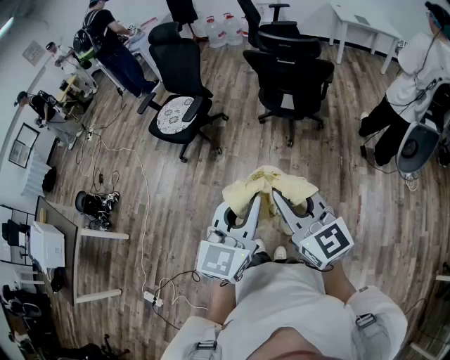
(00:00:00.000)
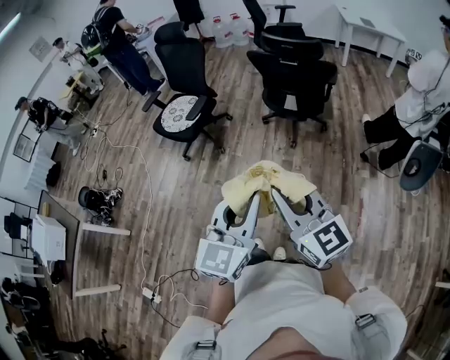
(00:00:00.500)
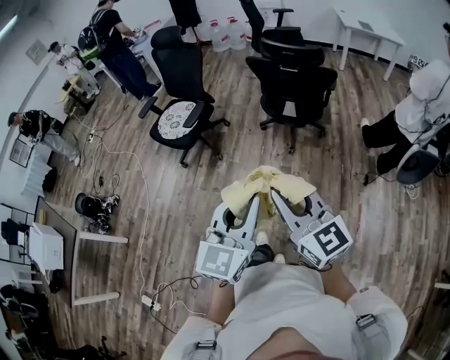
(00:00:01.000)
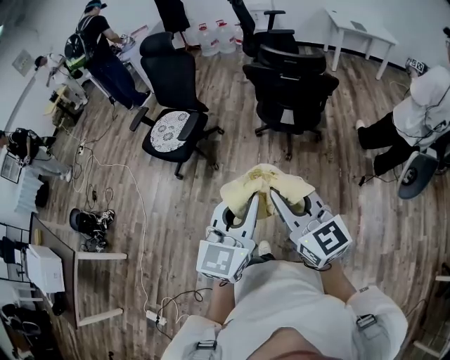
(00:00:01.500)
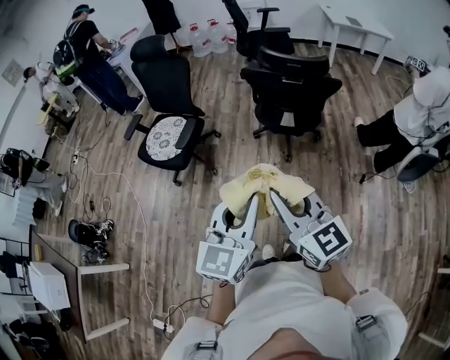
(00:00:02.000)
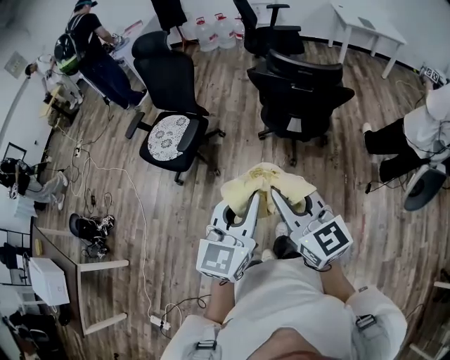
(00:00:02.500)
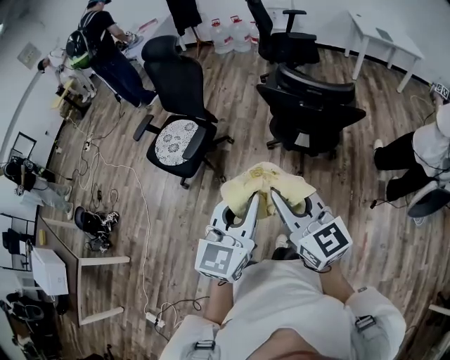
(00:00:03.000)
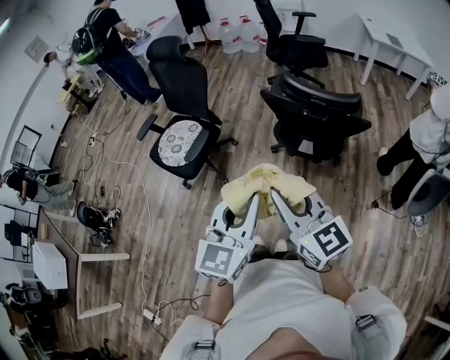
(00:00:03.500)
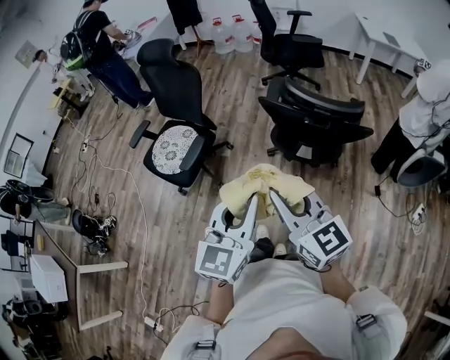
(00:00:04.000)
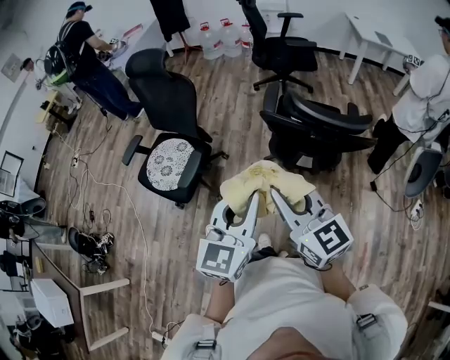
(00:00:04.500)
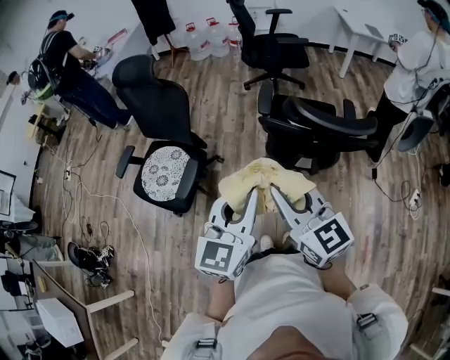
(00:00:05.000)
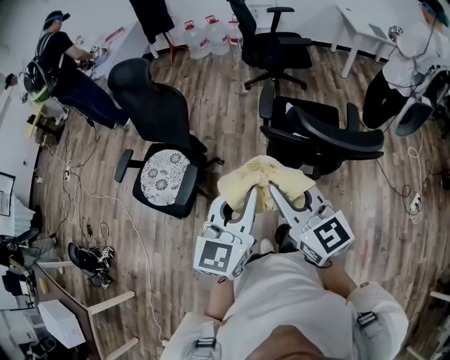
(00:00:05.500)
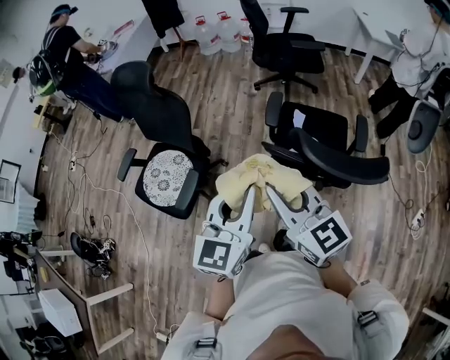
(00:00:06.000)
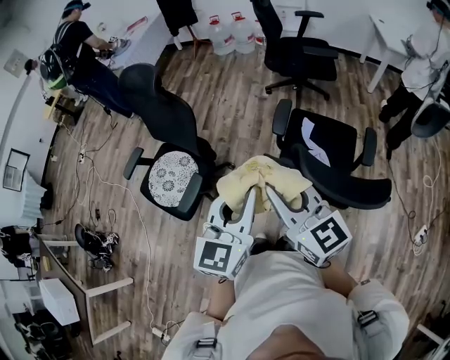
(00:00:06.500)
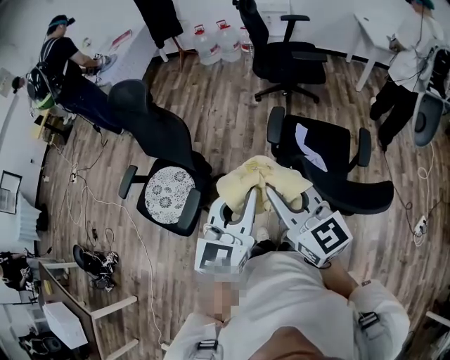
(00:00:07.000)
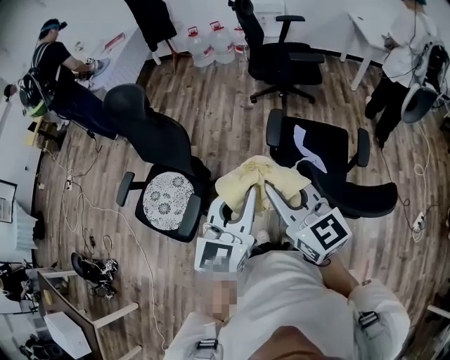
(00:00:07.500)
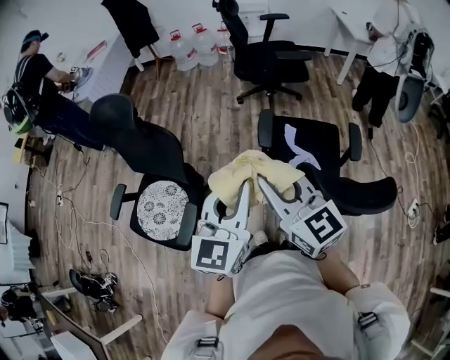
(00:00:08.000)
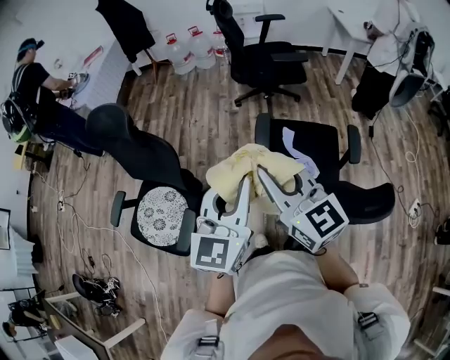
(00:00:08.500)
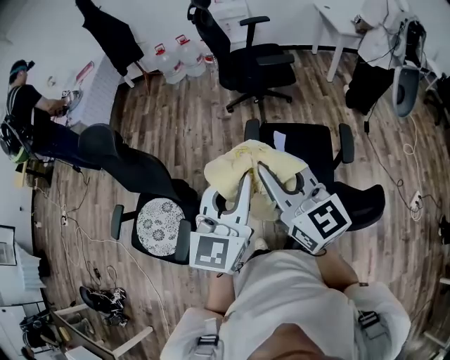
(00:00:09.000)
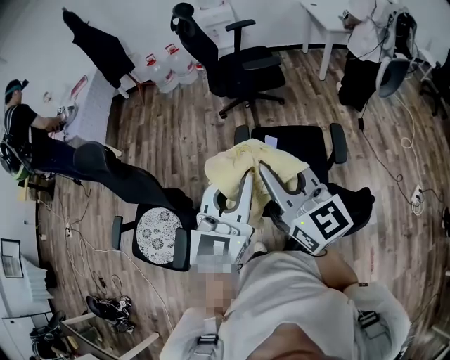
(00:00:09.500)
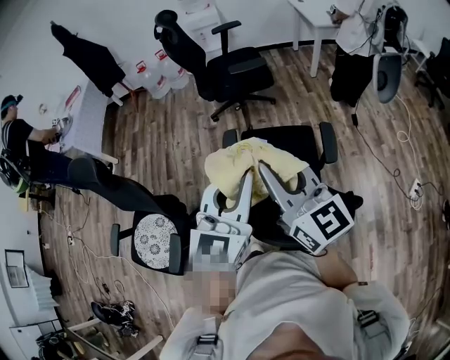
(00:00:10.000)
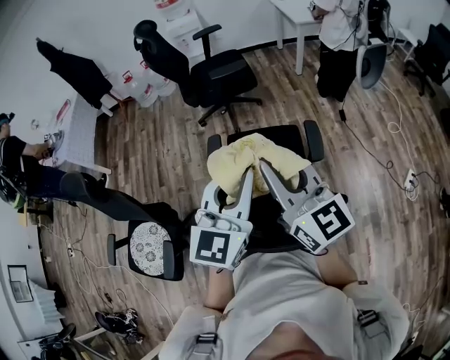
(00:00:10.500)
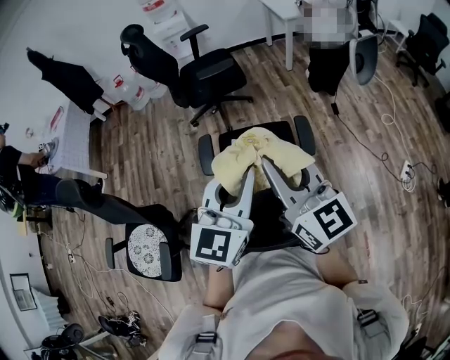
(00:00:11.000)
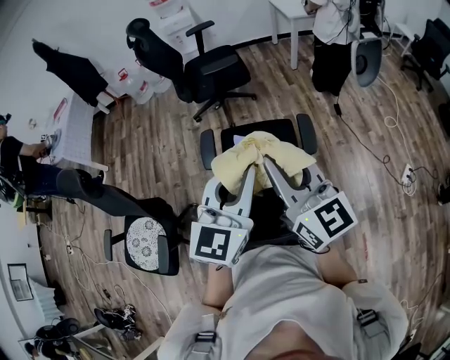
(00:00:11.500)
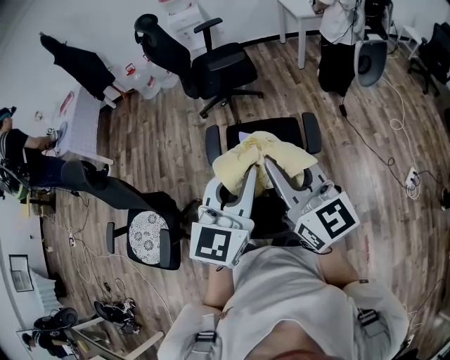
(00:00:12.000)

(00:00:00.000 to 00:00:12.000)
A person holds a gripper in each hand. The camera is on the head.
00:00:00.000 - 00:00:02.000: Both grippers travel together forward, roughly 20 cm.
00:00:02.000 - 00:00:04.000: Both grippers move forward, approximately 25 cm.
00:00:04.000 - 00:00:06.000: The grippers both shift forward by some 25 cm.
00:00:06.000 - 00:00:08.000: Both grippers move forward, some 15 cm.
00:00:08.000 - 00:00:10.000: The grippers both shift to the right by about 25 cm.
00:00:10.000 - 00:00:12.000: The grippers both shift to the right by roughly 10 cm.

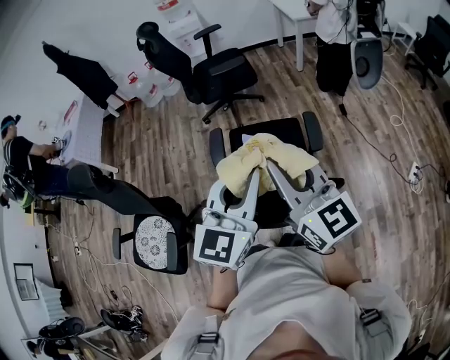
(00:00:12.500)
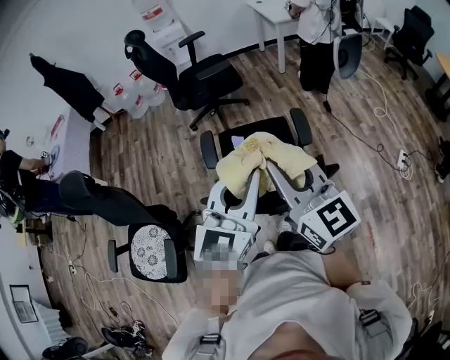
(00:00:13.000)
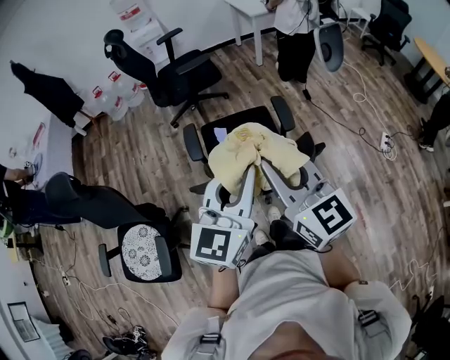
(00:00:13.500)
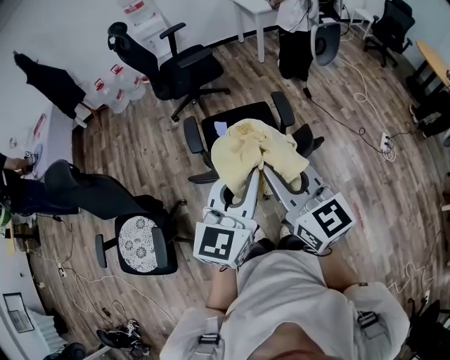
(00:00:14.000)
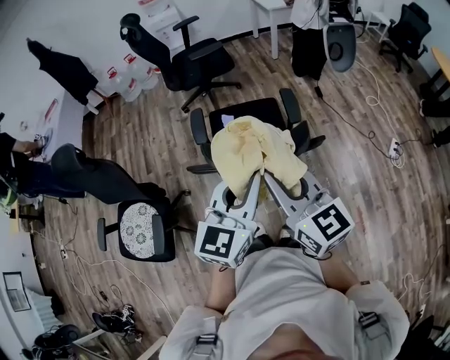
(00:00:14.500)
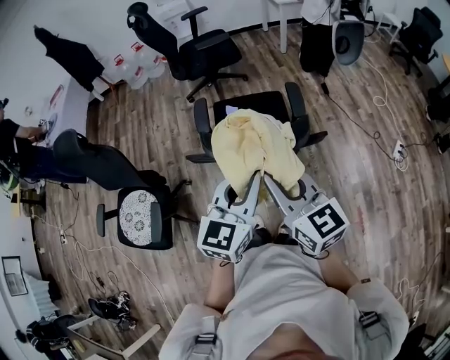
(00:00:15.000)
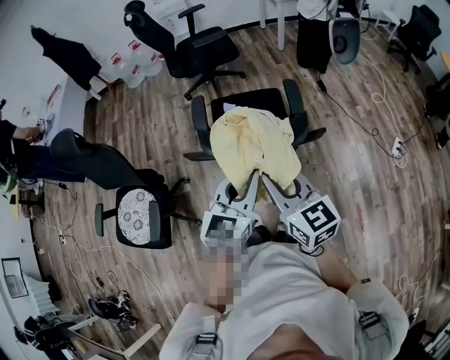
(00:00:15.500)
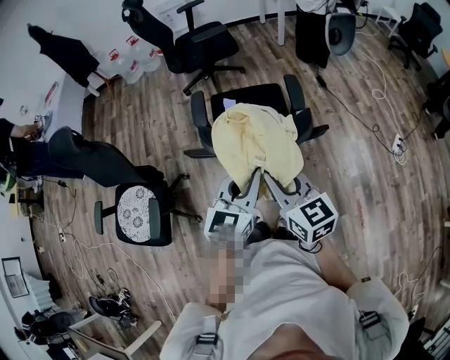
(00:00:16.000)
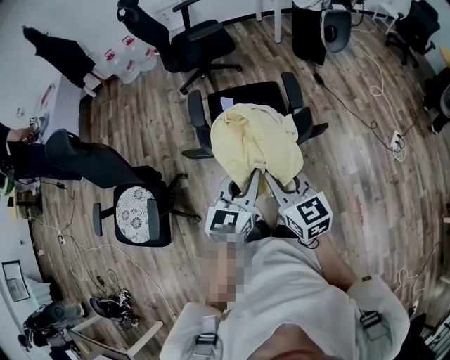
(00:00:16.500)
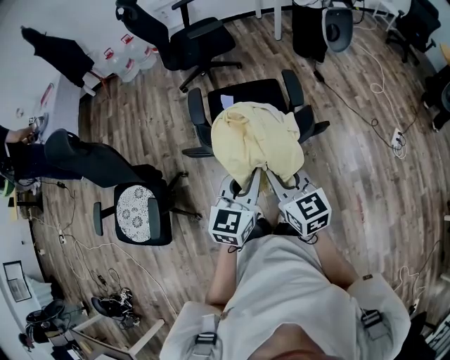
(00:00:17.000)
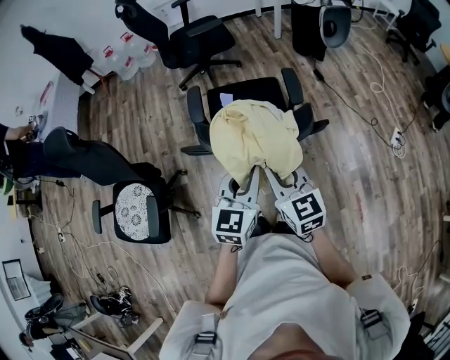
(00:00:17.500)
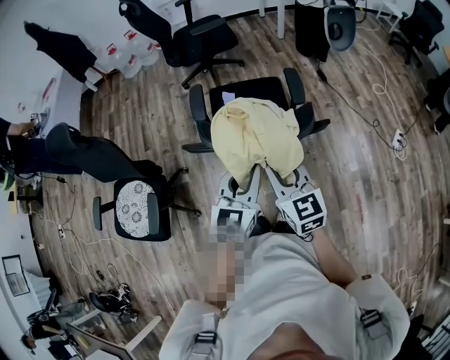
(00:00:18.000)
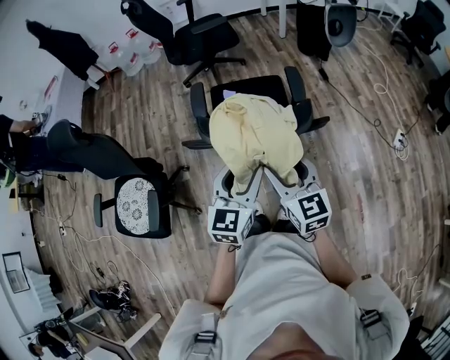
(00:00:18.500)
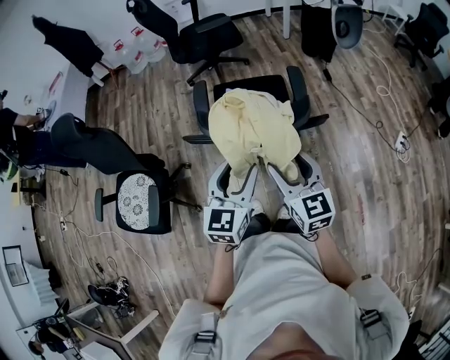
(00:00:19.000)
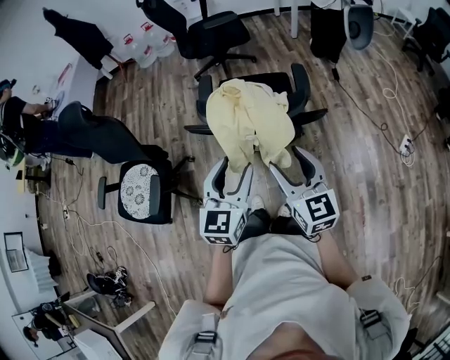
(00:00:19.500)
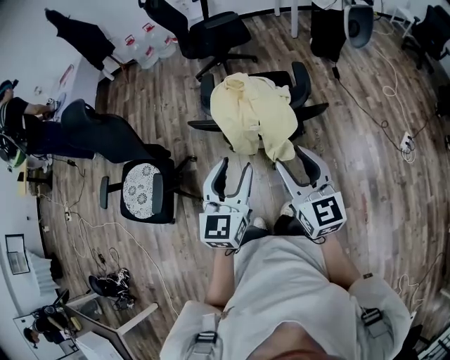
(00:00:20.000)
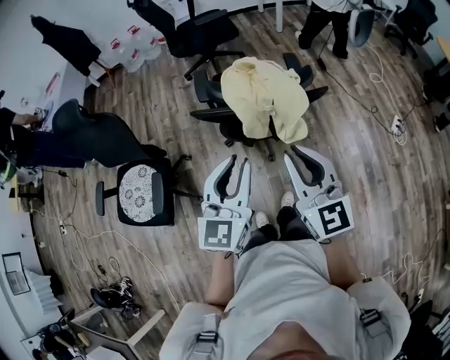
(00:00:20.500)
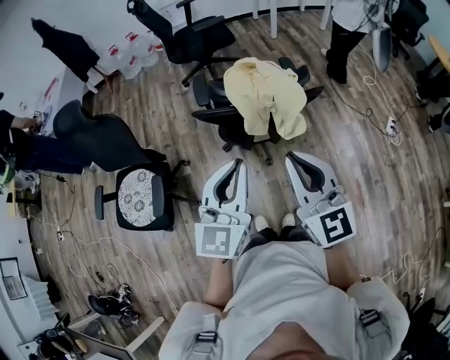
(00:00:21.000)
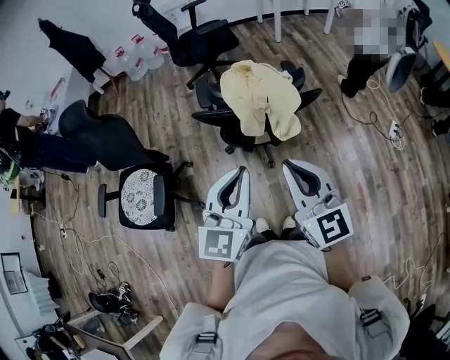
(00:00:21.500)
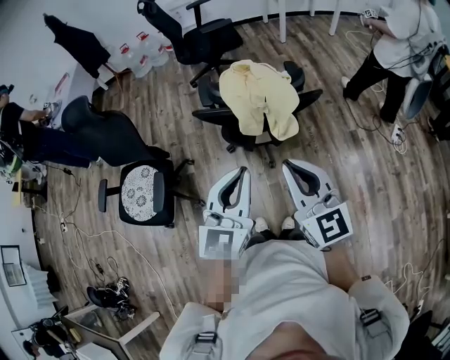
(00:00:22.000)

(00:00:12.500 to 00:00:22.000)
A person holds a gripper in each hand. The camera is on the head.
00:00:12.500 - 00:00:14.500: The two grippers go approximately 15 cm backward.
00:00:14.500 - 00:00:16.500: Both grippers move downward, about 10 cm.
00:00:16.500 - 00:00:18.000: The grippers move only a little.
00:00:18.000 - 00:00:20.000: The right gripper is displaced backward and upward by roughly 10 cm, and opens its fingers. The left gripper heads backward, covering about 10 cm, and opens up.
00:00:20.000 - 00:00:22.000: Both grippers move backward and upward, about 10 cm. The left gripper closes. Meanwhile the right gripper closes its fingers.

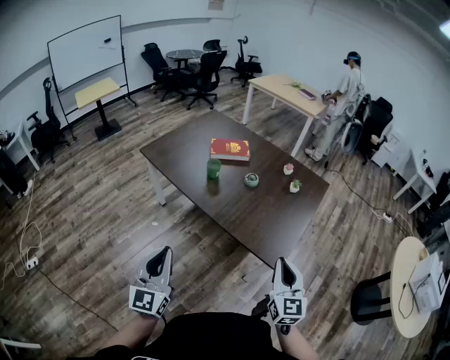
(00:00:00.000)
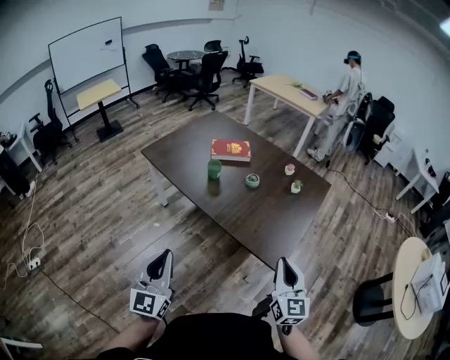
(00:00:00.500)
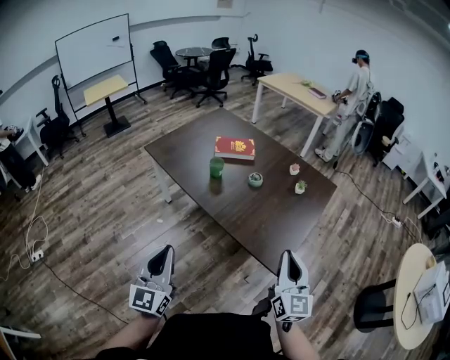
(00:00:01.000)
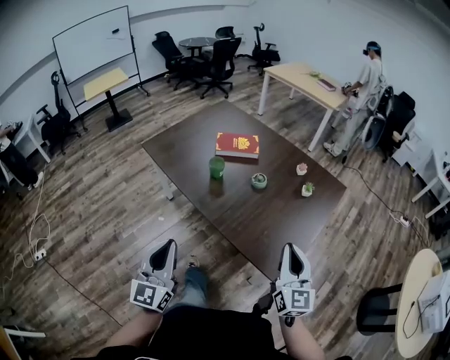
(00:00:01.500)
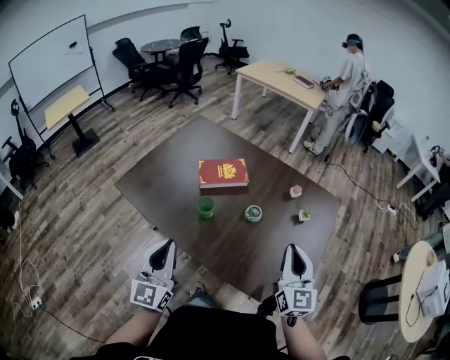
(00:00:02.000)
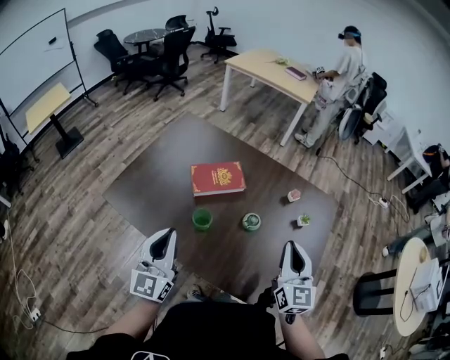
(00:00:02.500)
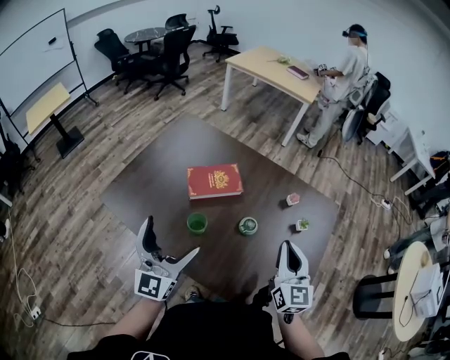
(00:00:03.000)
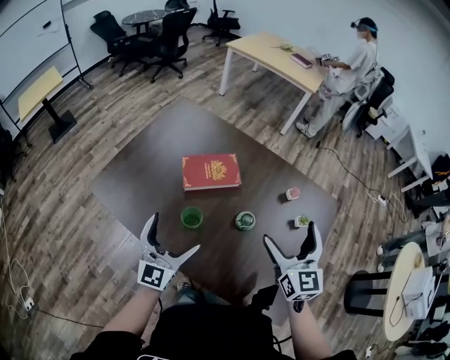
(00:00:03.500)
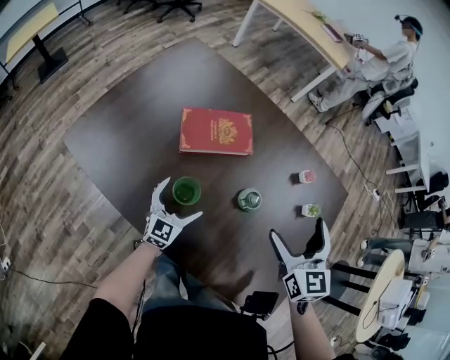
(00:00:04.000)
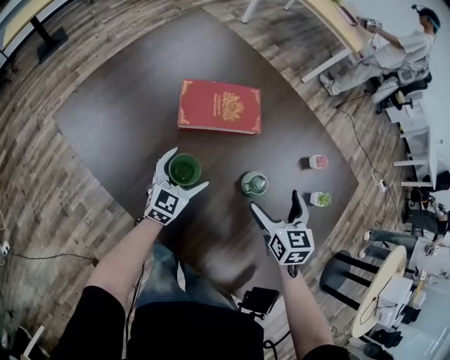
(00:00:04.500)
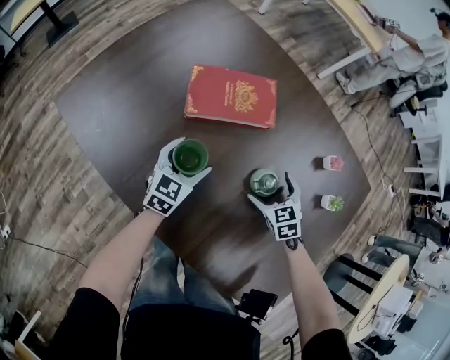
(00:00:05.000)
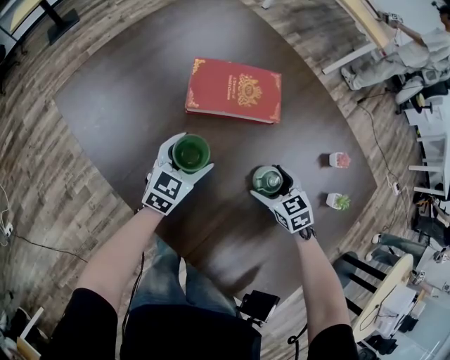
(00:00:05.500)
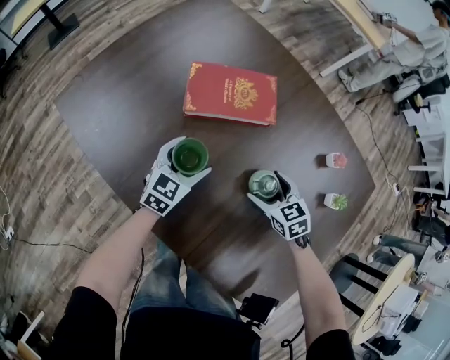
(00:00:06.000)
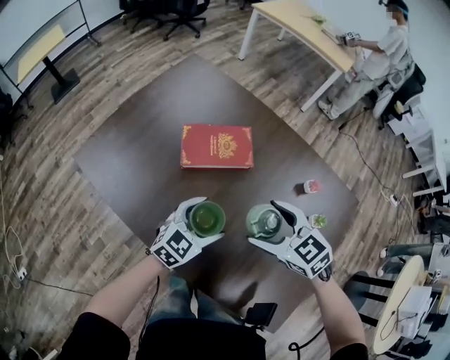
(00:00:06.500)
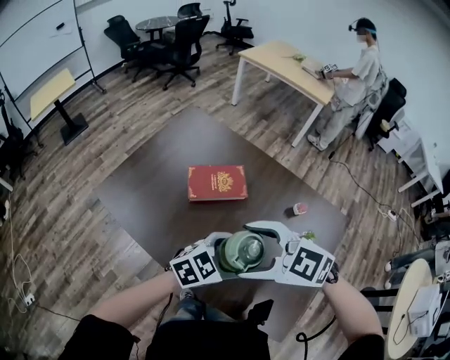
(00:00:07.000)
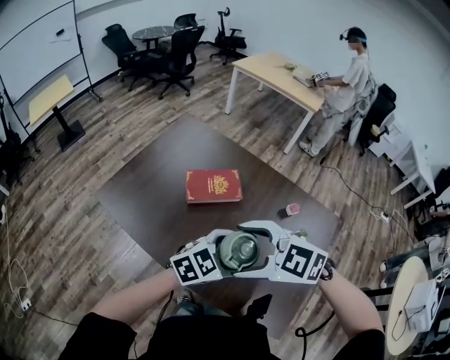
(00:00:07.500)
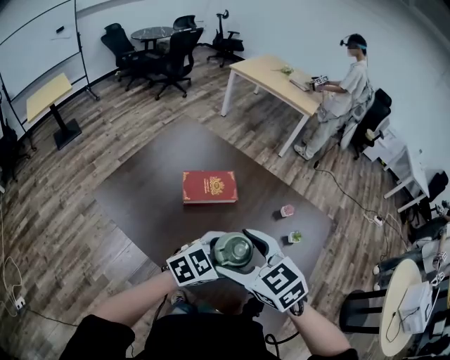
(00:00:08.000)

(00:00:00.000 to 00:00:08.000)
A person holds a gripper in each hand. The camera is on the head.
00:00:00.000 - 00:00:02.000: The two grippers go approximately 35 cm forward.
00:00:02.000 - 00:00:04.000: The right gripper shifts some 25 cm forward and downward, turns by roughly 20 degrees, and opens its fingers. Meanwhile the left gripper moves downward and forward, approximately 40 cm, turns by roughly 30 degrees, and opens.
00:00:04.000 - 00:00:06.000: The right gripper goes some 30 cm downward, and turns by some 40 degrees; the left gripper heads downward, covering approximately 5 cm.
00:00:06.000 - 00:00:08.000: Both grippers travel together upward, roughly 40 cm. The left gripper turns by some 40 degrees.